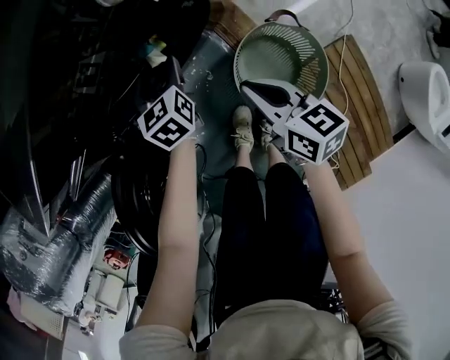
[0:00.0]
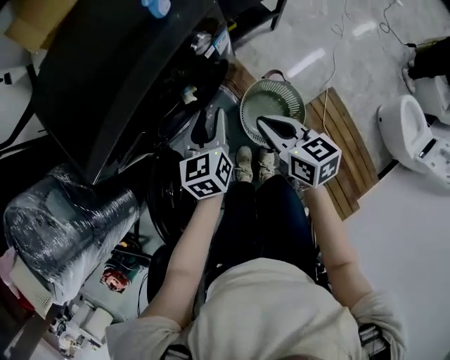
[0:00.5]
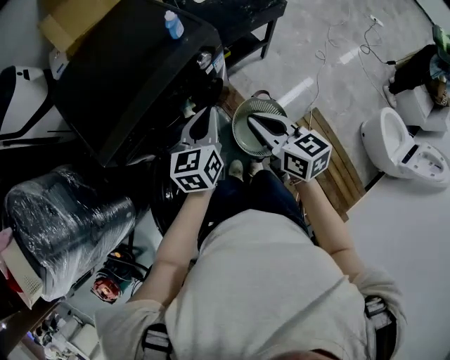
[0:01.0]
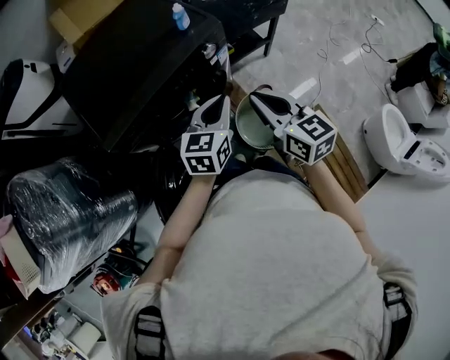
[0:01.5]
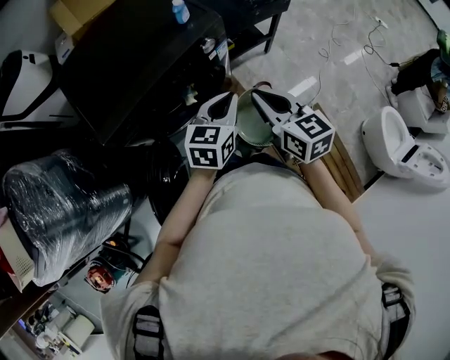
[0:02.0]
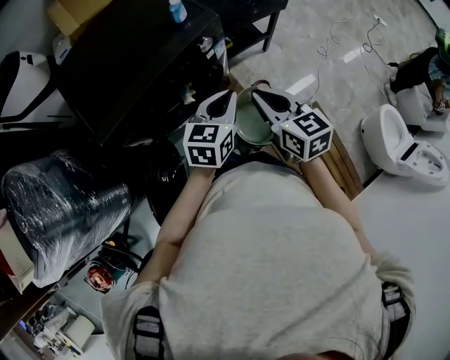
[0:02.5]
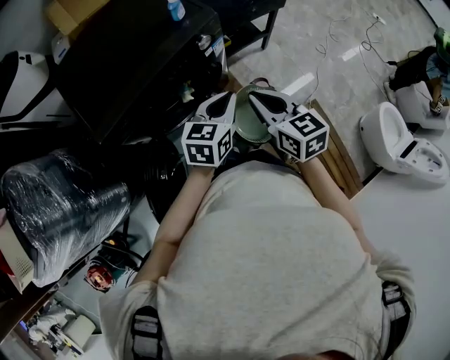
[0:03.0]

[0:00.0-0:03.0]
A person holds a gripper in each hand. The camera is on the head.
0:00.0 to 0:01.5: The right gripper moves upward, about 35 cm, and changes its angle by some 30 degrees, while the left gripper shifts some 40 cm upward and backward, rotates roughly 40 degrees, and closes.
0:01.5 to 0:03.0: The grippers move only a little.

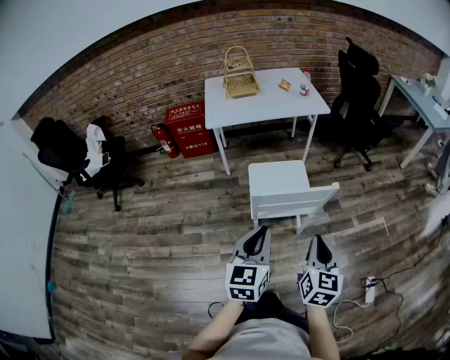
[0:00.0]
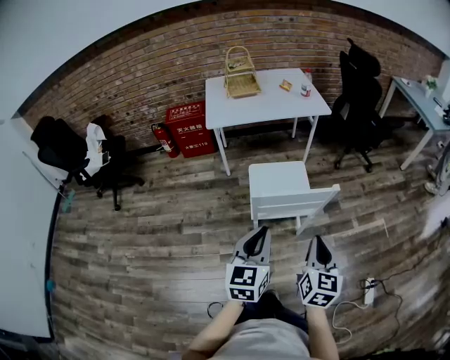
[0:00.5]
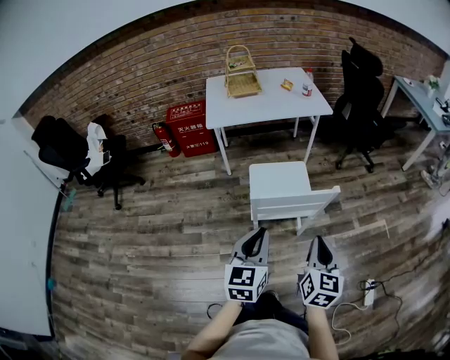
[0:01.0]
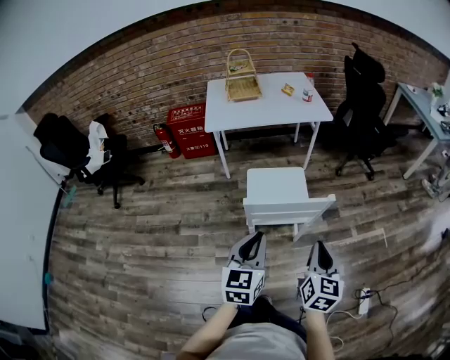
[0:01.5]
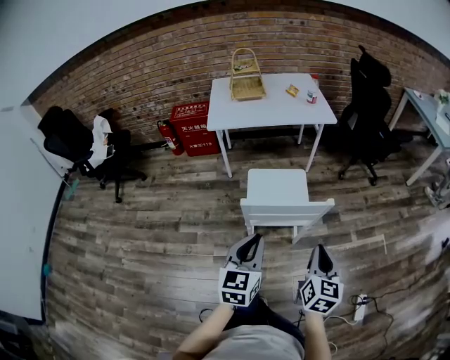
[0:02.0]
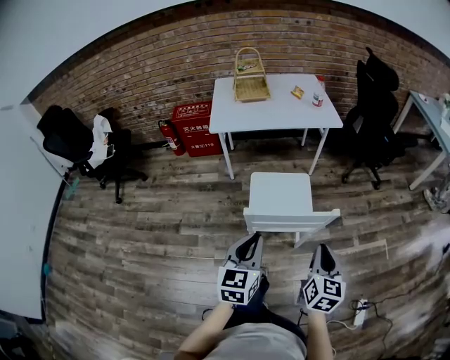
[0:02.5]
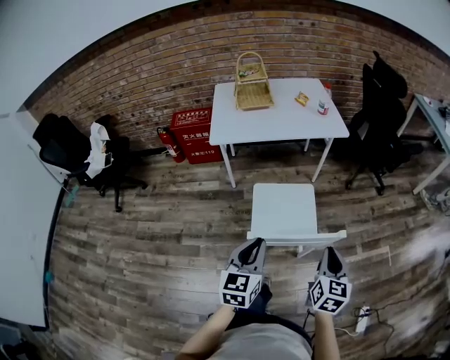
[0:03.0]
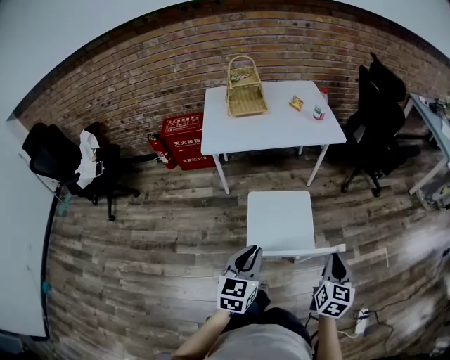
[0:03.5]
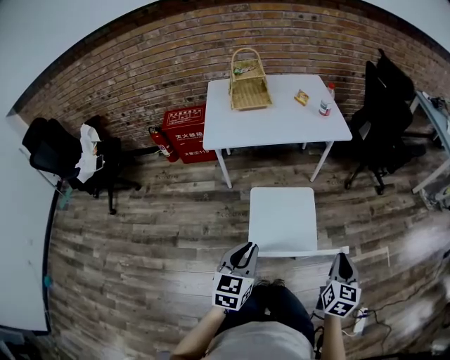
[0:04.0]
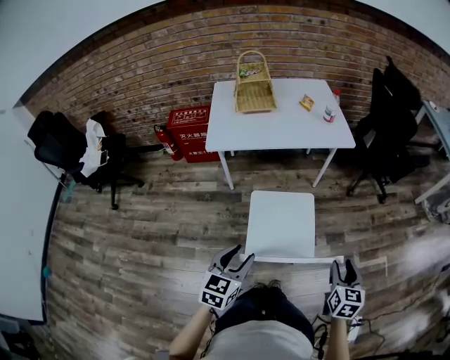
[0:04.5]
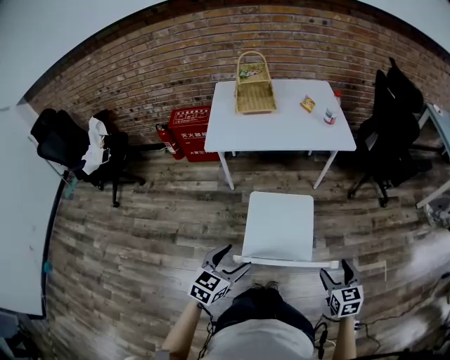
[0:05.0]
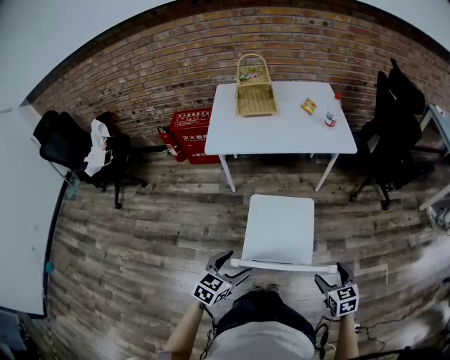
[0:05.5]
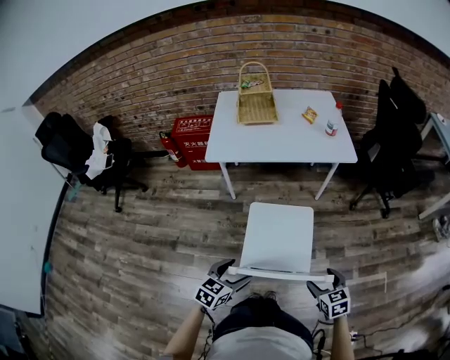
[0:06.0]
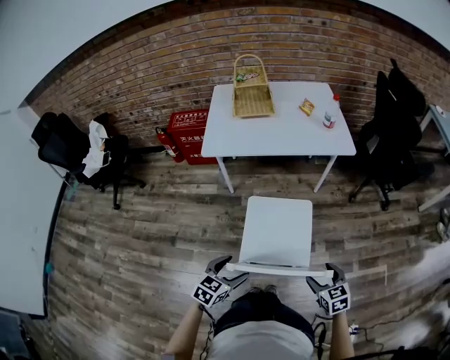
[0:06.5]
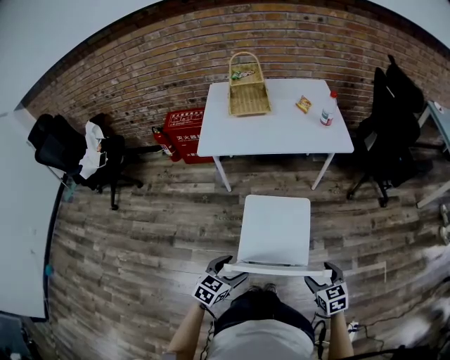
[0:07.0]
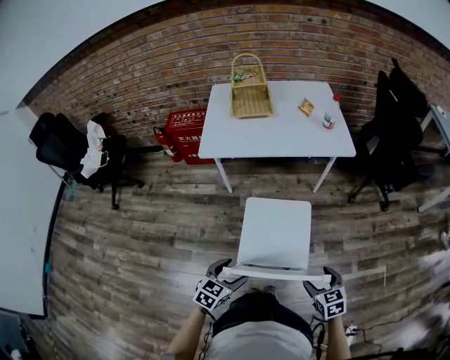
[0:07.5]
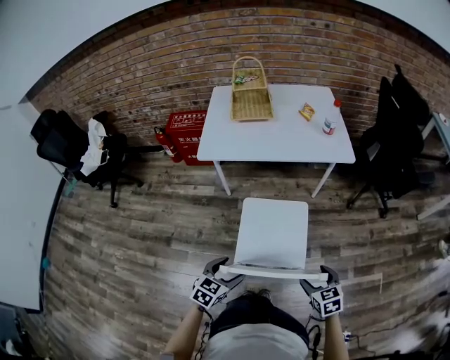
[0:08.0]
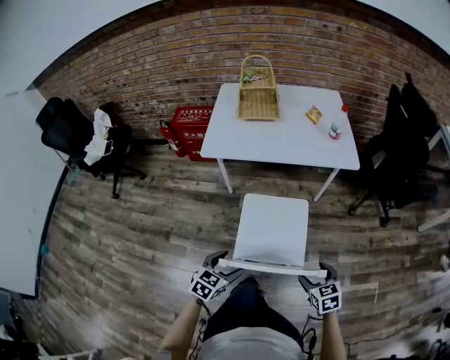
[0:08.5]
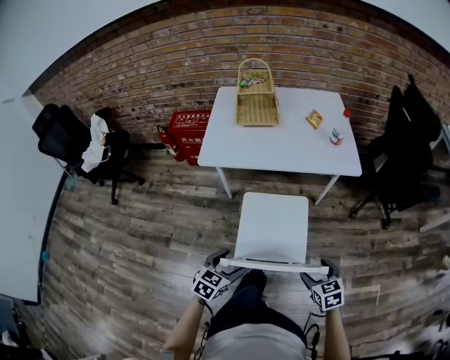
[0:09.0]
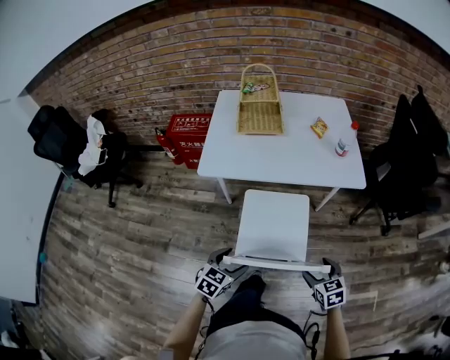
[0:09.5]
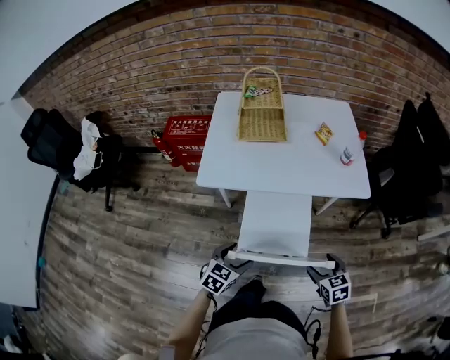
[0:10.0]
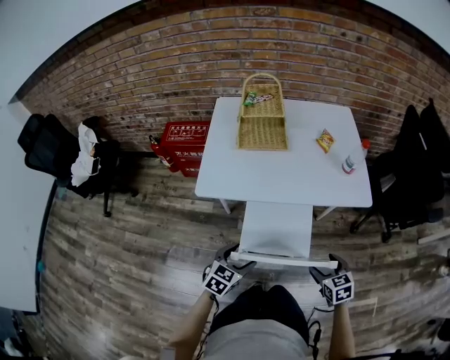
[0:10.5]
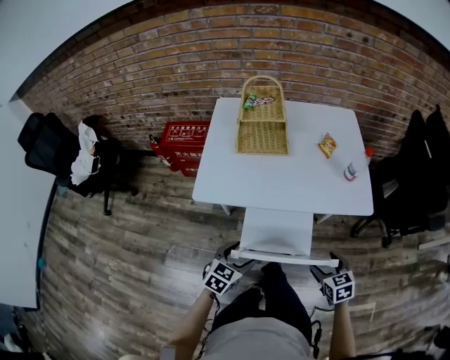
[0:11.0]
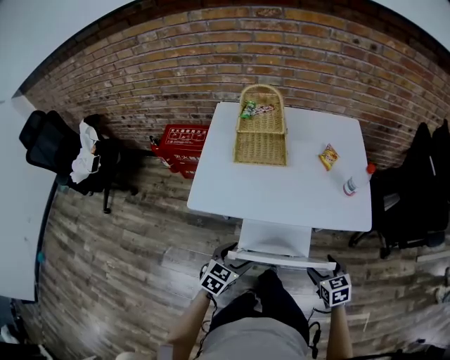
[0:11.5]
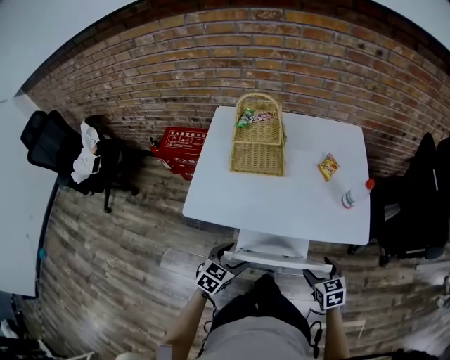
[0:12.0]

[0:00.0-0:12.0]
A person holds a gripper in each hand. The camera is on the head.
0:00.0 to 0:02.0: The right gripper is displaced to the right by some 5 cm. Meanwhile the left gripper ends up some 5 cm from where it was.
0:02.0 to 0:04.0: The right gripper moves forward, approximately 20 cm. The left gripper moves forward and to the left, about 20 cm.
0:04.0 to 0:06.0: The two grippers go about 10 cm downward. The left gripper opens its fingers, while the right gripper changes its angle by some 40 degrees, and opens its fingers.
0:06.0 to 0:08.0: There are only small adjustments of the grippers.
0:08.0 to 0:10.0: The grippers both shift forward by about 20 cm.
0:10.0 to 0:12.0: The grippers both shift forward by some 15 cm.

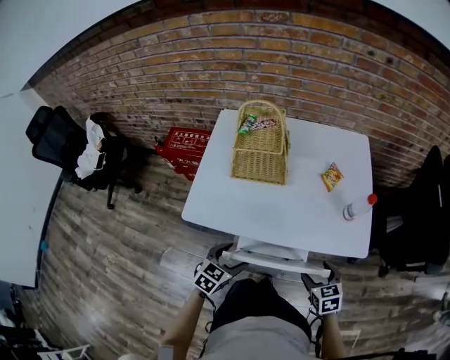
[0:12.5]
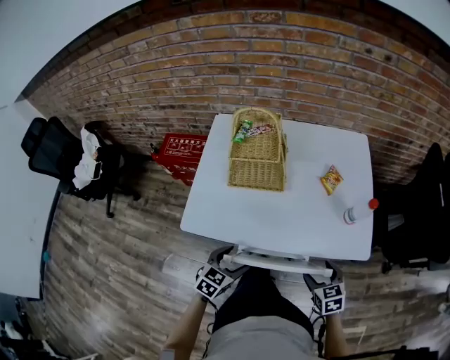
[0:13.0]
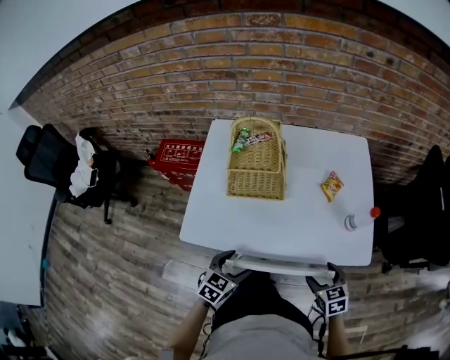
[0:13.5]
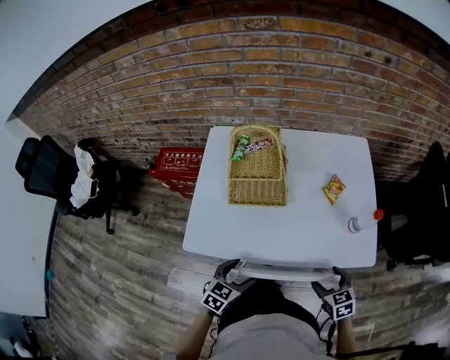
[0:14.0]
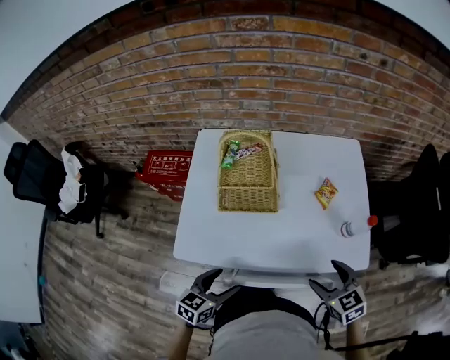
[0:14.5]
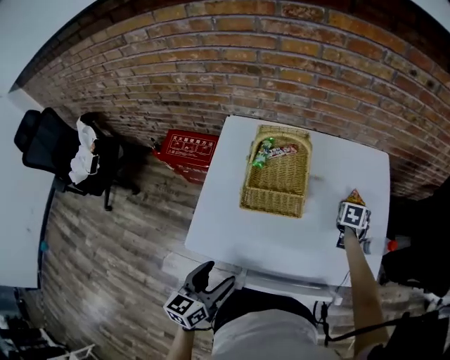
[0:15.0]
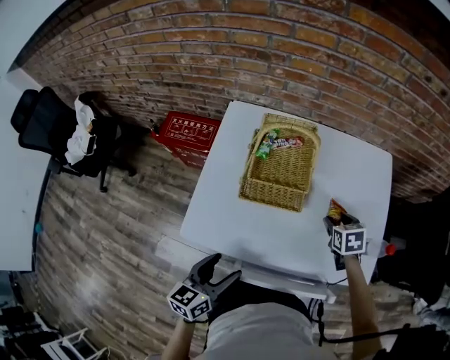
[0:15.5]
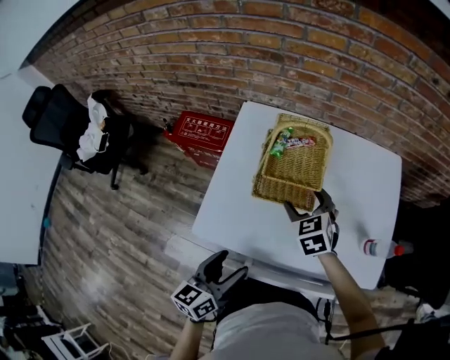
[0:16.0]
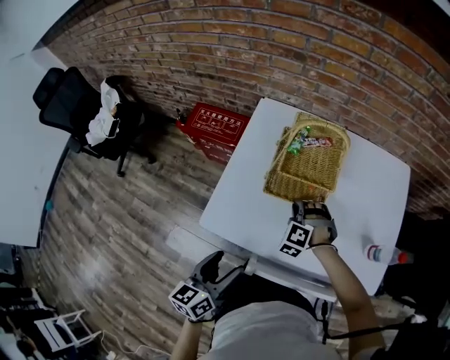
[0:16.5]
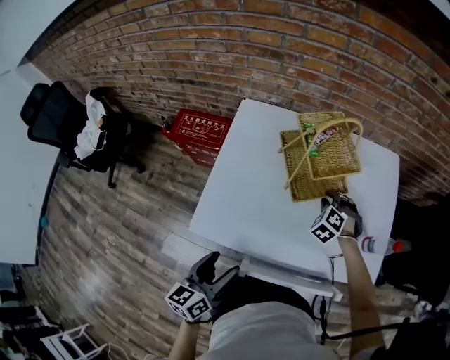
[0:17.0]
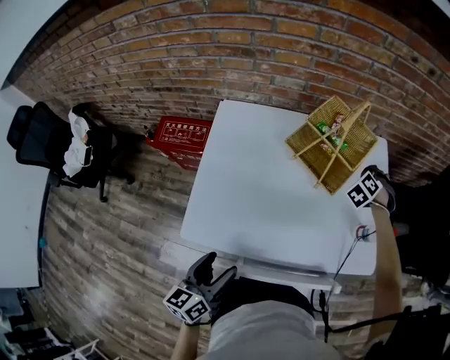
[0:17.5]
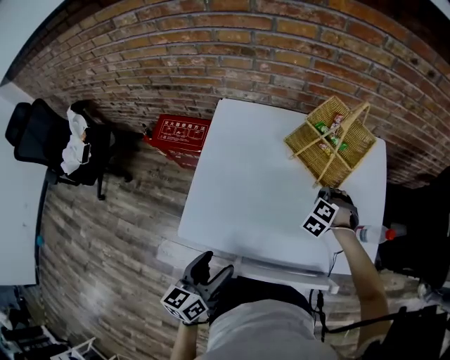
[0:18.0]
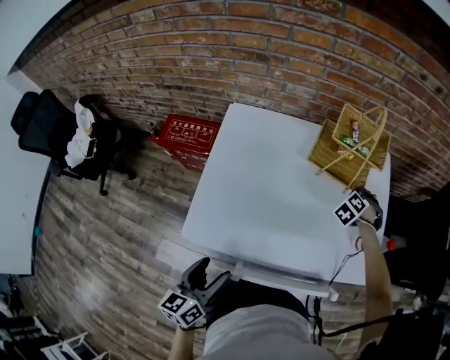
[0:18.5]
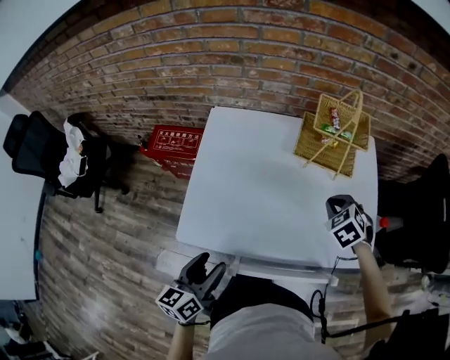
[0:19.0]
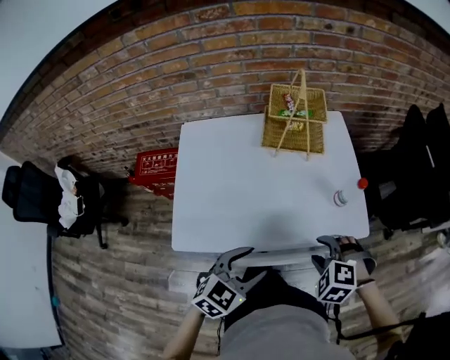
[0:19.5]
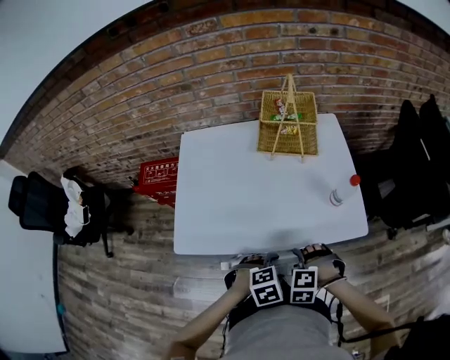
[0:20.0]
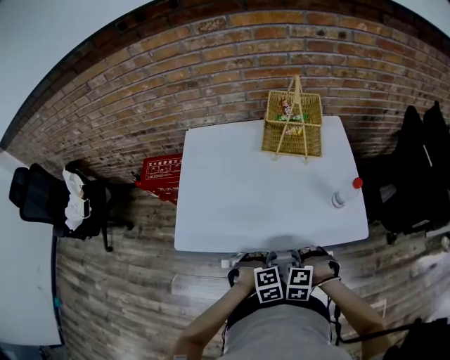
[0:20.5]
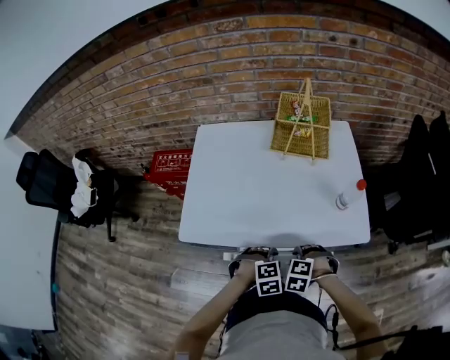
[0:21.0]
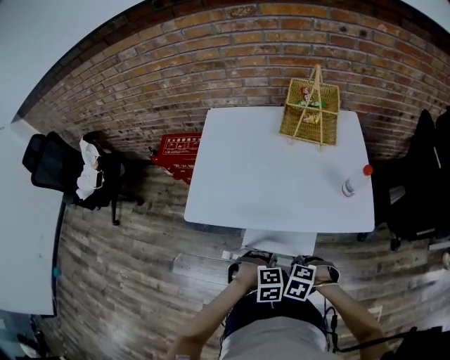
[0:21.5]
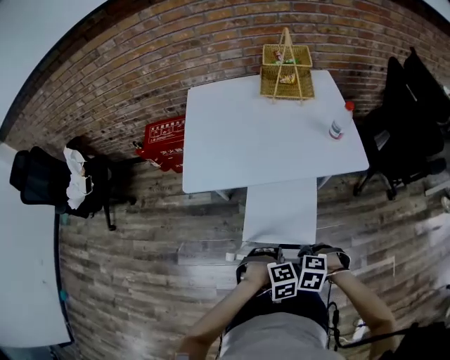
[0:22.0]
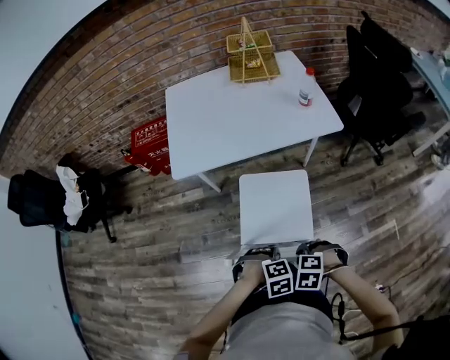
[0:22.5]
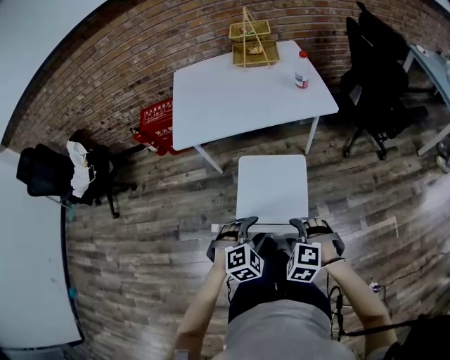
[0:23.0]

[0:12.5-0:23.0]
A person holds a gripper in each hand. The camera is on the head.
0:12.5 to 0:14.5: The left gripper shifts by roughly 10 cm. Meanwhile the right gripper travels upward and forward by about 15 cm.
0:14.5 to 0:16.5: The left gripper moves about 10 cm, and changes its angle by roughly 40 degrees. The right gripper swings up and down, roughly 10 cm each way, with 2 reversals, rolls counterclockwise, seen from behind, by some 60 degrees, and closes up.
0:16.5 to 0:19.0: The right gripper swings up and down, roughly 10 cm each way, with 2 reversals, and rotates around the line of its fingers by about 40 degrees, clockwise from behind.
0:19.0 to 0:21.0: The left gripper ends up approximately 30 cm from where it was, twists approximately 90 degrees clockwise, seen from behind, and closes. Meanwhile the right gripper changes place by approximately 30 cm, rotates some 40 degrees, and opens and closes again.
0:21.0 to 0:23.0: The right gripper changes place by about 40 cm, and opens; the left gripper ends up about 40 cm from where it was, and opens.

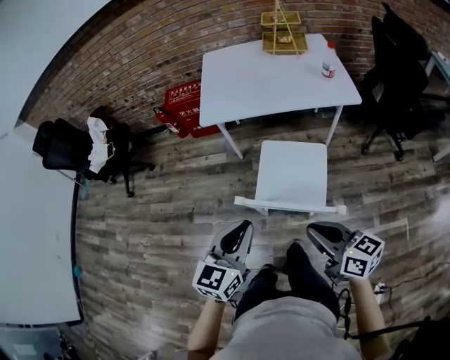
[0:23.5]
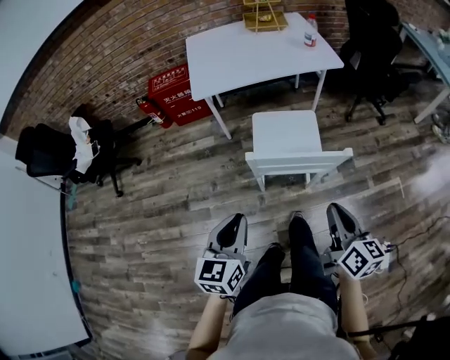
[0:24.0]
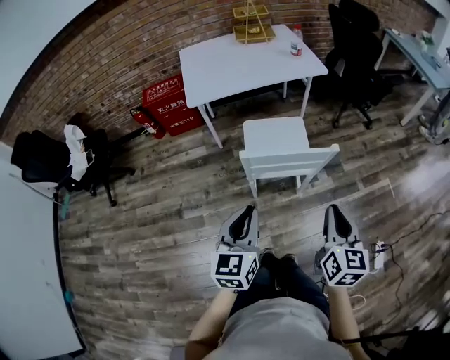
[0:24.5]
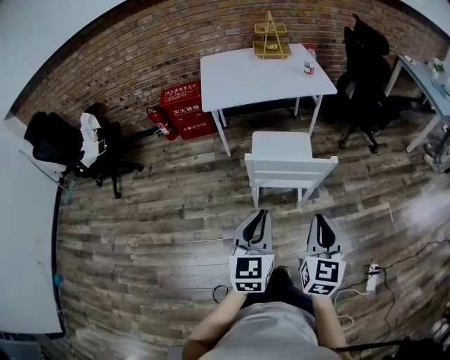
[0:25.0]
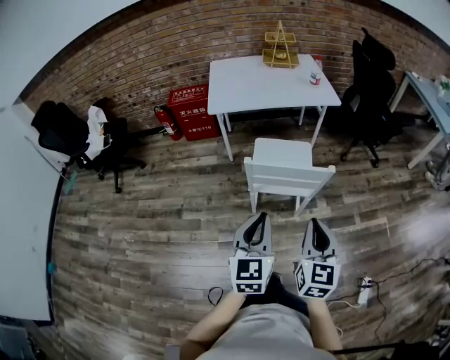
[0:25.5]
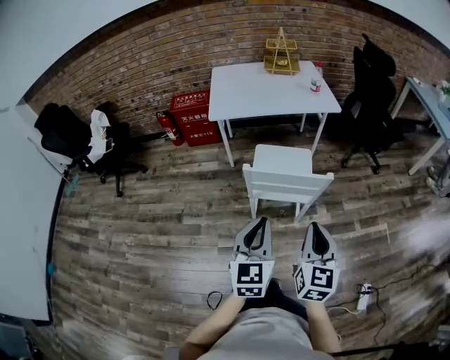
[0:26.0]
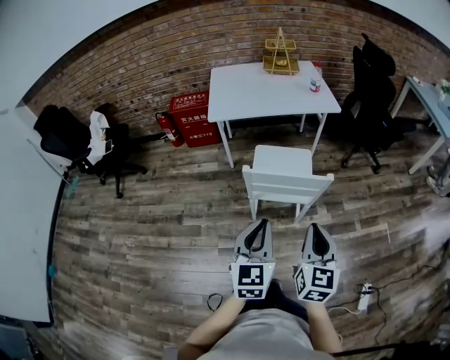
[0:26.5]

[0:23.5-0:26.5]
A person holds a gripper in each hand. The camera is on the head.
0:23.5 to 0:25.0: The right gripper changes place by roughly 20 cm, and swivels about 60 degrees, while the left gripper ends up about 15 cm from where it was.
0:25.0 to 0:26.5: The grippers stay close to where they were, moving slightly.
